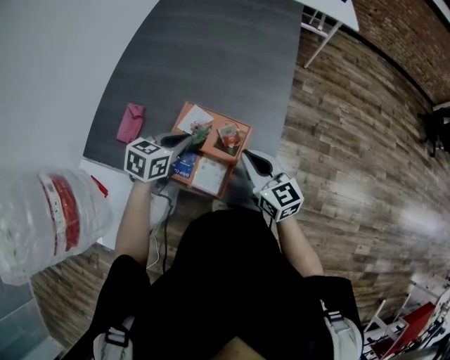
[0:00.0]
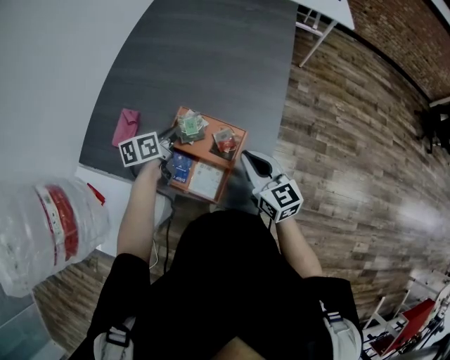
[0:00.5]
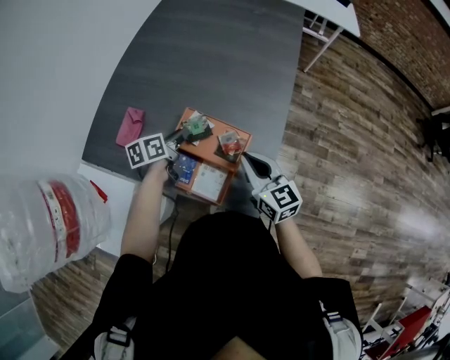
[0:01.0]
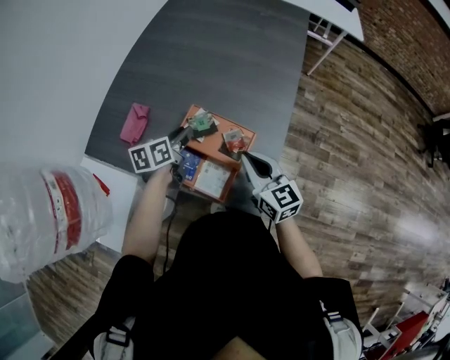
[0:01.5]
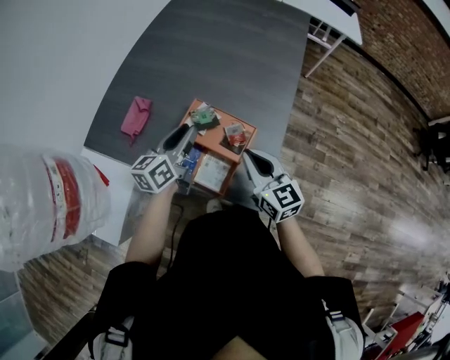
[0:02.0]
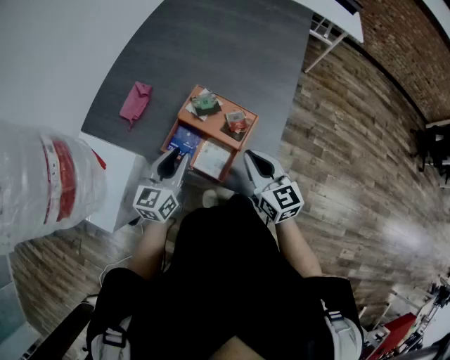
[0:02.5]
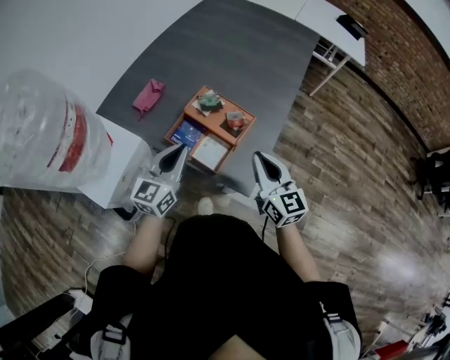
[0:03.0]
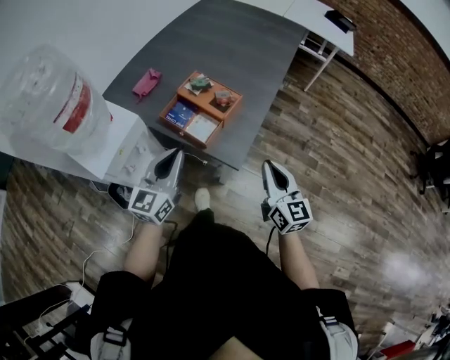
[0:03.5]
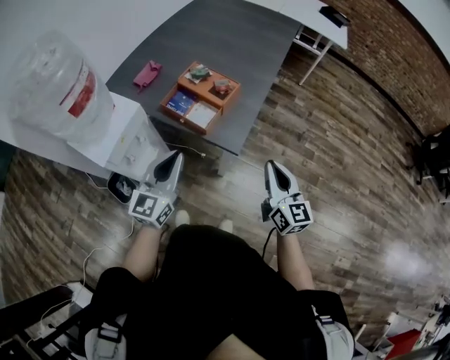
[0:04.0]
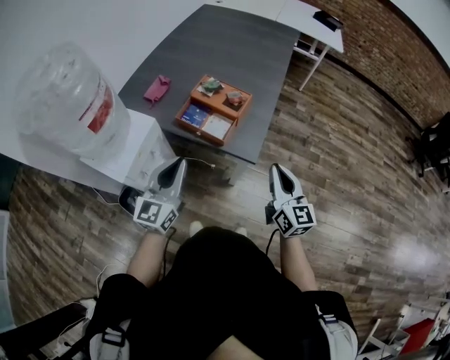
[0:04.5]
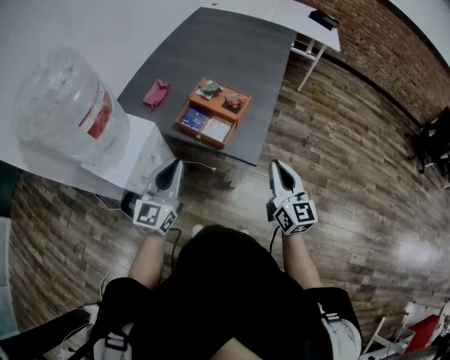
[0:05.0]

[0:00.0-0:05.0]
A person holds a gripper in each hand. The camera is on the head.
0:00.0 to 0:02.5: The left gripper shifts approximately 10 cm backward, swivels about 40 degrees, and opens.
0:02.5 to 0:05.0: The left gripper moves backward and upward, roughly 25 cm, rotates approximately 20 degrees, and closes its fingers. The right gripper heads backward, covering about 20 cm, and changes its angle by roughly 20 degrees.

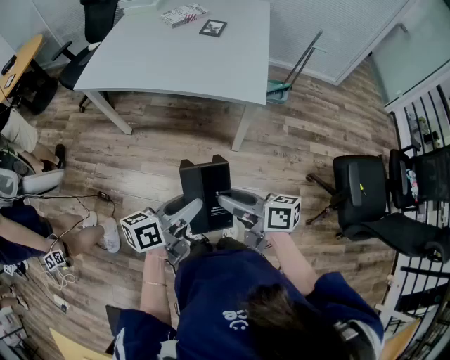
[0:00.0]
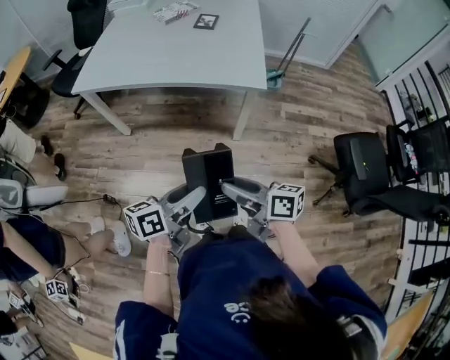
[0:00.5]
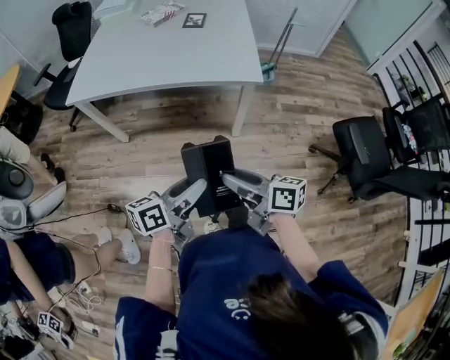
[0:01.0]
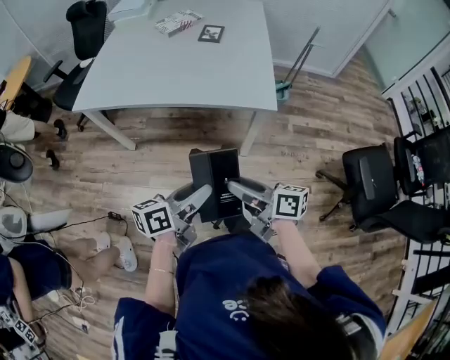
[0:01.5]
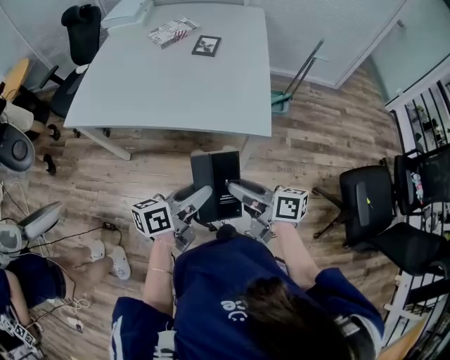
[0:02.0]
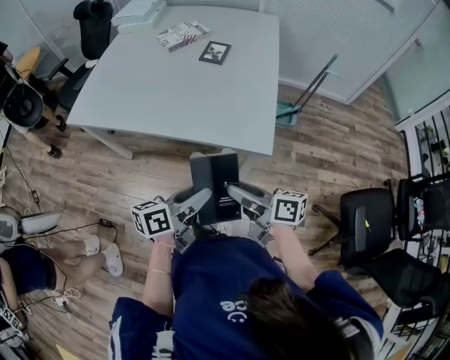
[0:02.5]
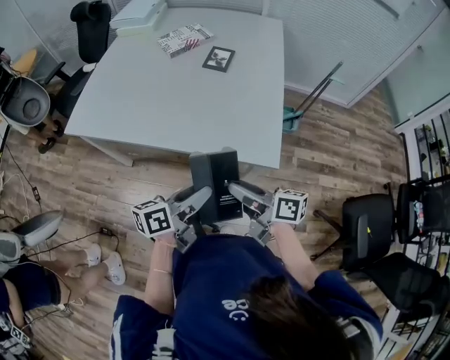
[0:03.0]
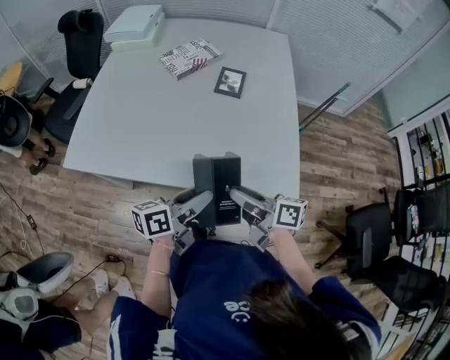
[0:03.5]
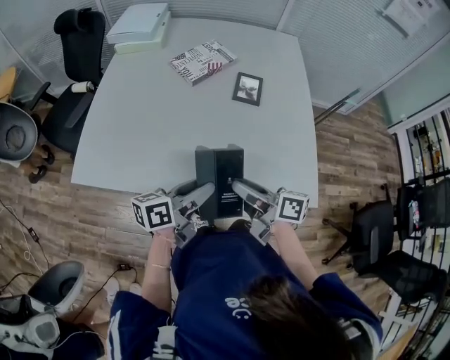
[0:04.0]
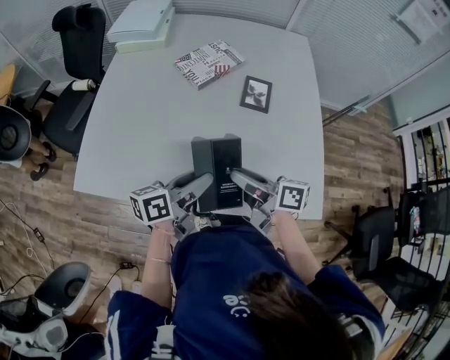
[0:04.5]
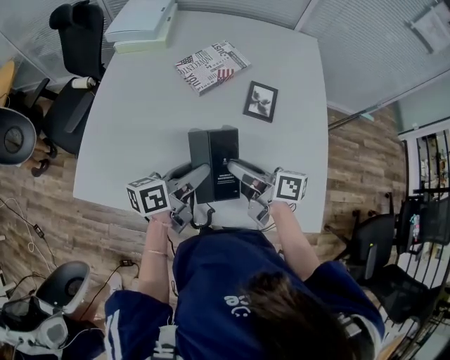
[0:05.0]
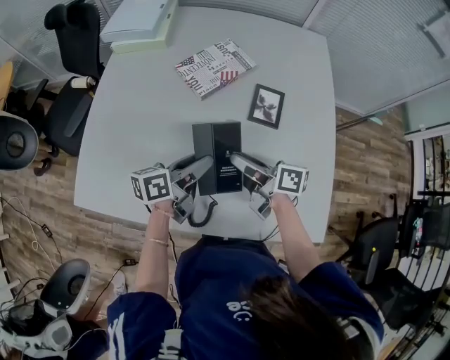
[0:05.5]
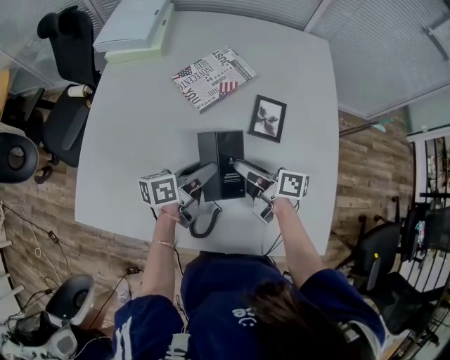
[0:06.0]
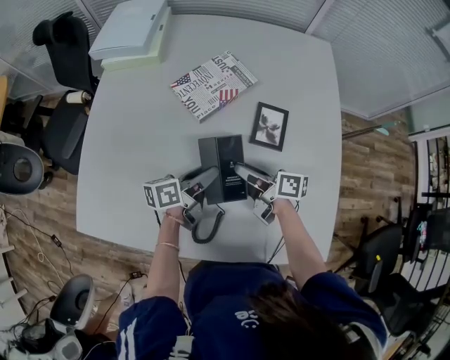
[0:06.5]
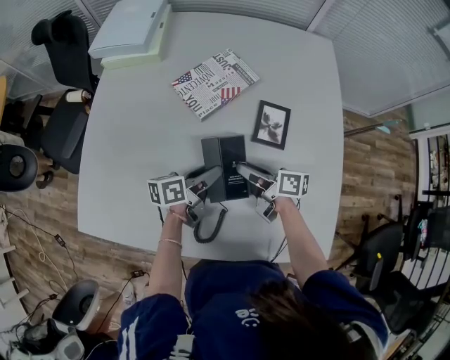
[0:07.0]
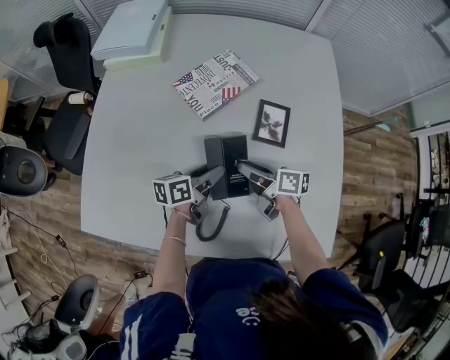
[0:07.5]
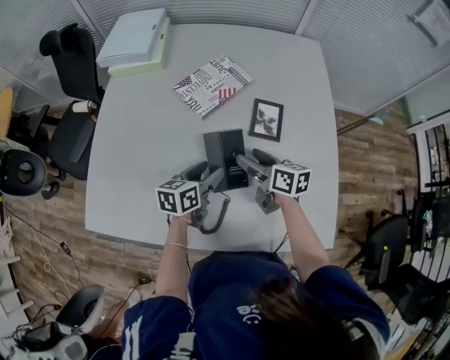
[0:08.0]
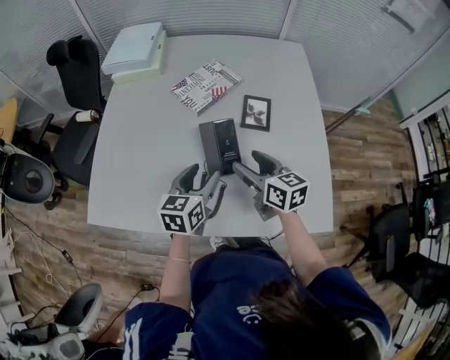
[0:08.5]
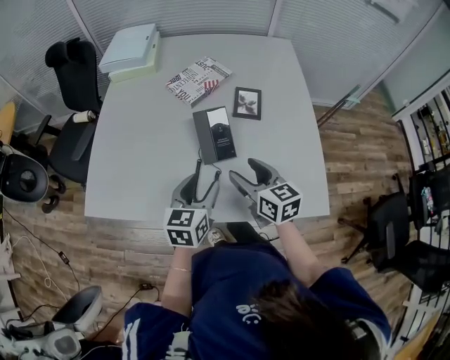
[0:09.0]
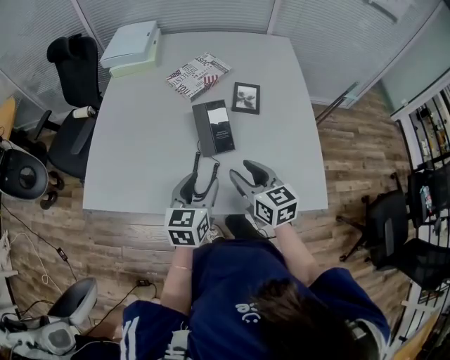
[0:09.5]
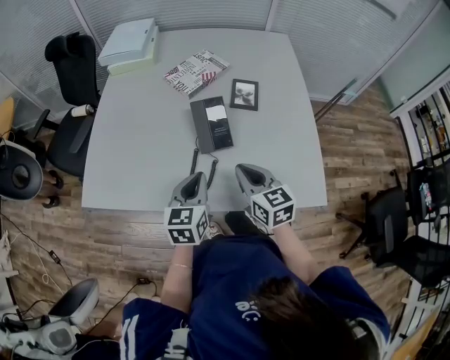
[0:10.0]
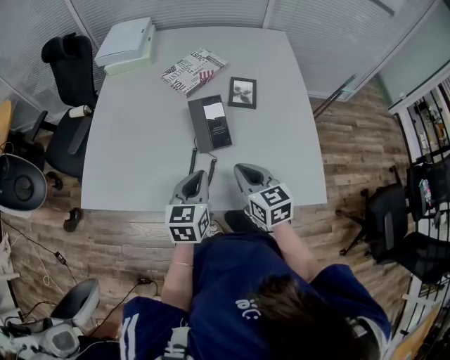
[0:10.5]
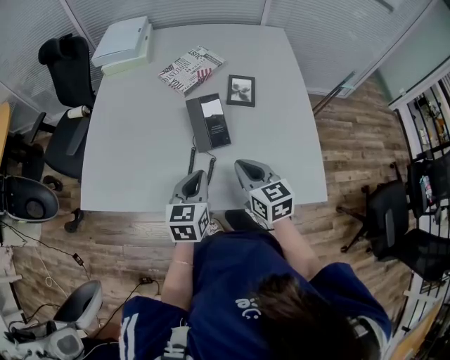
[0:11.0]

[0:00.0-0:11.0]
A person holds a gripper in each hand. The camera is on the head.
0:00.0 to 0:02.0: Both grippers travel together forward, roughly 20 cm.
0:02.0 to 0:03.5: Both grippers travel together forward, some 25 cm.
0:03.5 to 0:05.5: Both grippers travel together forward, approximately 30 cm.
0:05.5 to 0:07.5: Both grippers move downward and forward, about 10 cm.
0:07.5 to 0:09.0: Both grippers travel together backward and upward, about 20 cm. The right gripper turns by approximately 50 degrees; the left gripper turns by some 40 degrees.
0:09.0 to 0:11.0: The right gripper closes its fingers, while the left gripper closes.

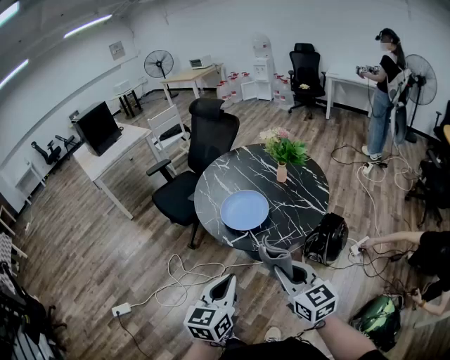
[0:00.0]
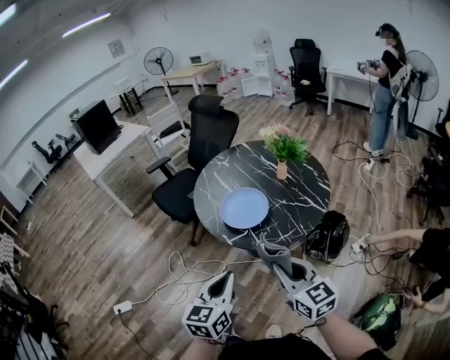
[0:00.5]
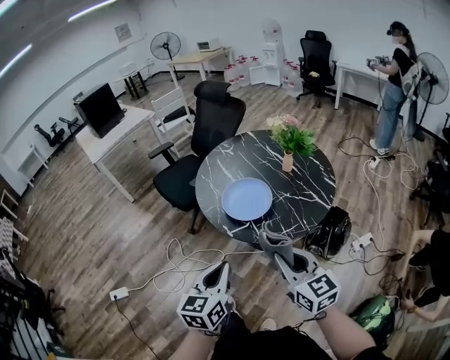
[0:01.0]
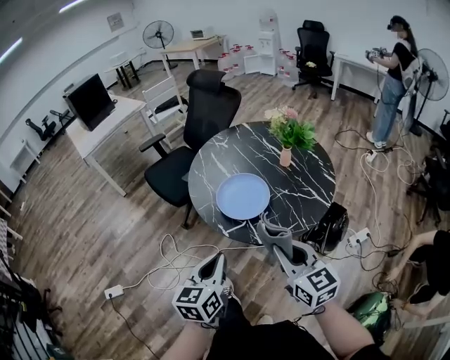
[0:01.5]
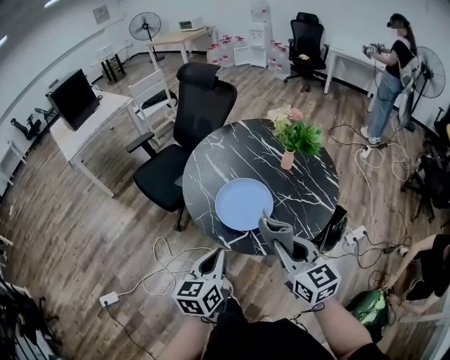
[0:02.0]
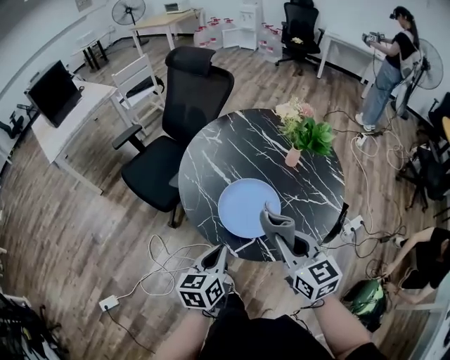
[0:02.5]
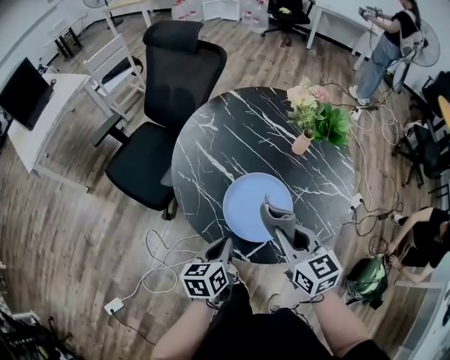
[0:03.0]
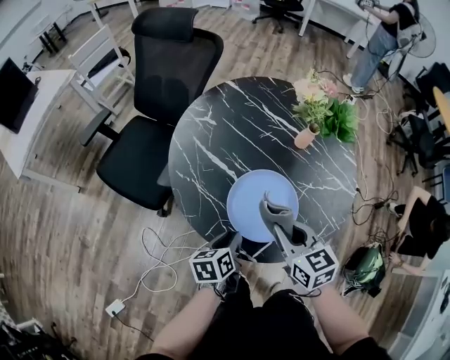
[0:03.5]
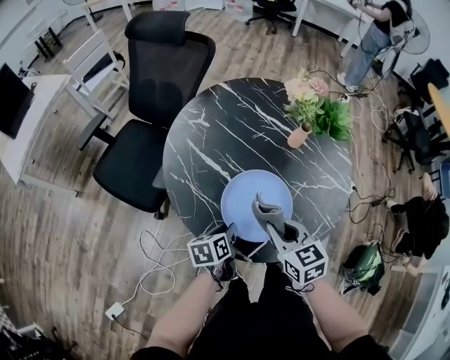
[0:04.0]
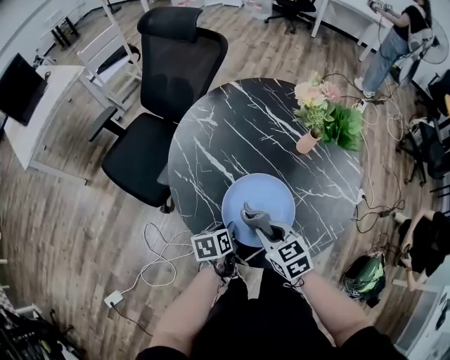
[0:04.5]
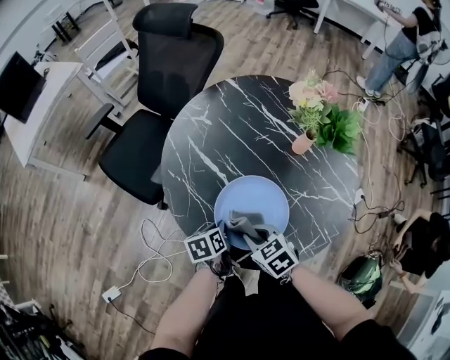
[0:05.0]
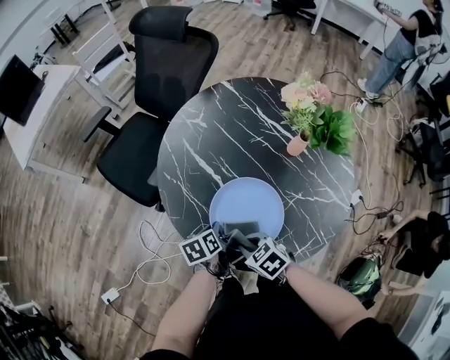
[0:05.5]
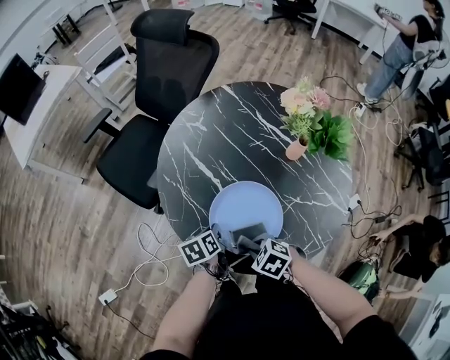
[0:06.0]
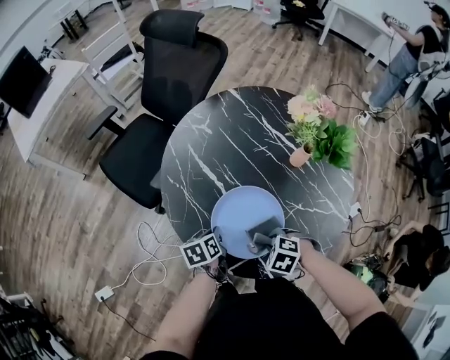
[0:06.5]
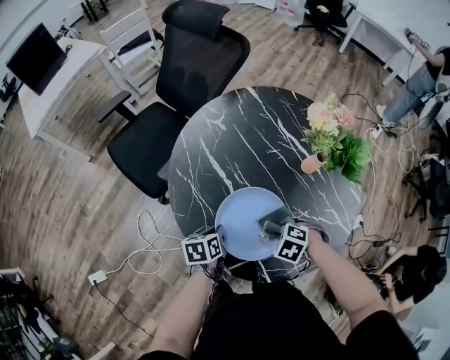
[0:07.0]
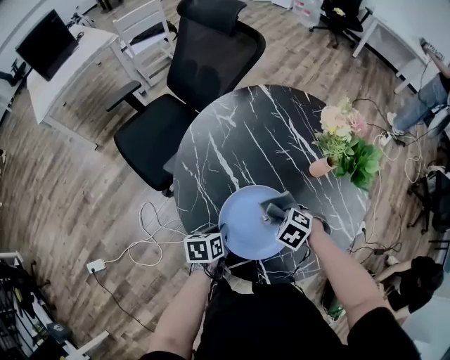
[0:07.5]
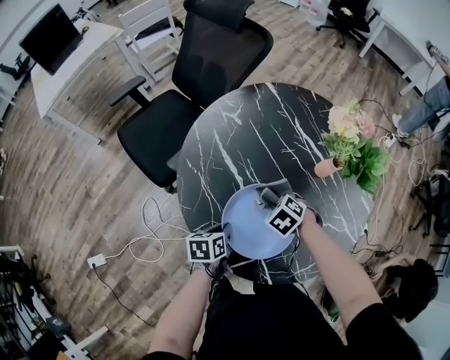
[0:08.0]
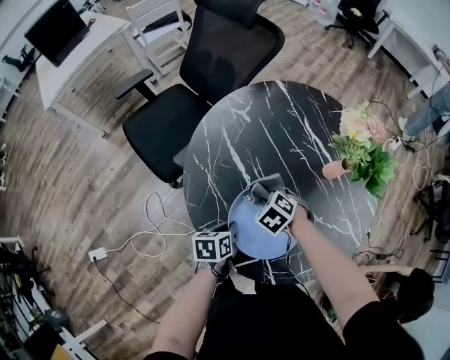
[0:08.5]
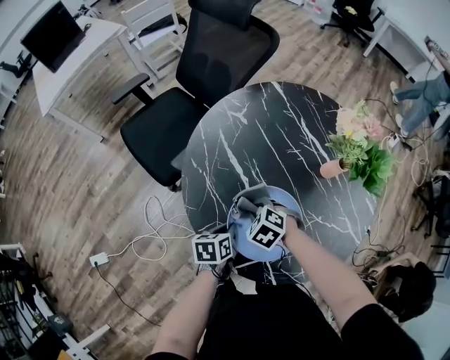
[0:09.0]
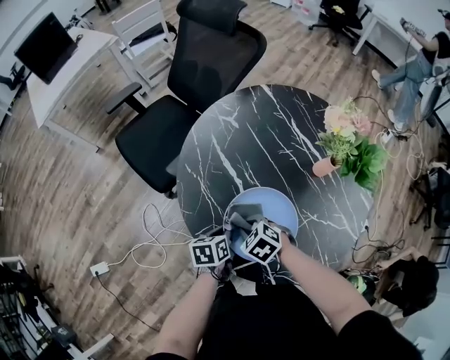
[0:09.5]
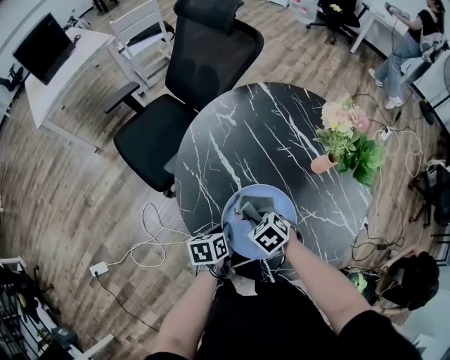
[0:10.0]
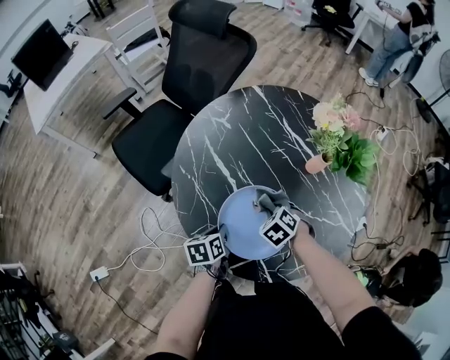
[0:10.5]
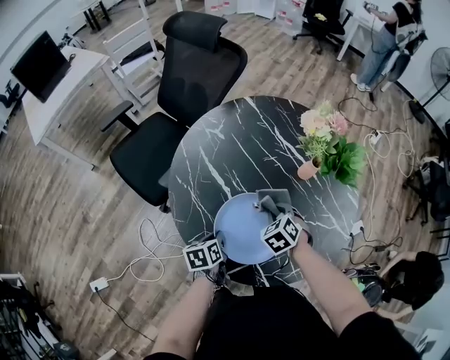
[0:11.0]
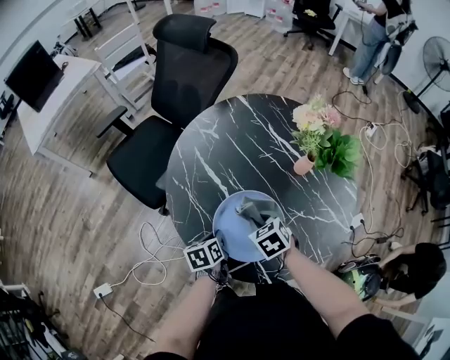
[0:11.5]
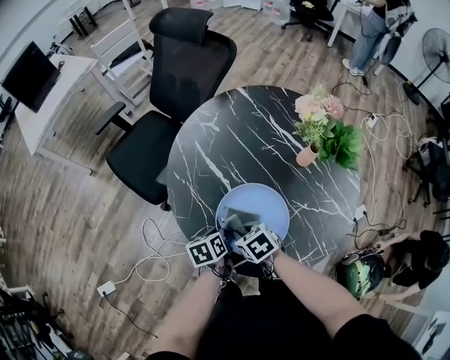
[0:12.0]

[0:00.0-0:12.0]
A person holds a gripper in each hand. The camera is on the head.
0:00.0 to 0:02.0: The two grippers go roughly 20 cm forward.
0:02.0 to 0:04.0: The right gripper shifts roughly 25 cm forward, downward and to the left, and swivels approximately 20 degrees. Meanwhile the left gripper travels downward and forward by about 30 cm, changes its angle by approximately 40 degrees, and opens up.
0:04.0 to 0:06.0: The left gripper closes, while the right gripper is displaced downward by approximately 15 cm, and tilts its fingers approximately 30 degrees downward.
0:06.0 to 0:08.0: The right gripper moves about 20 cm.
0:10.0 to 0:12.0: The right gripper swivels some 20 degrees.
